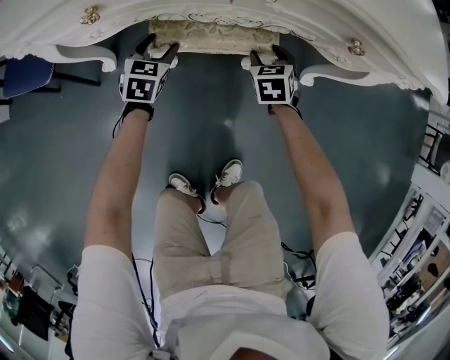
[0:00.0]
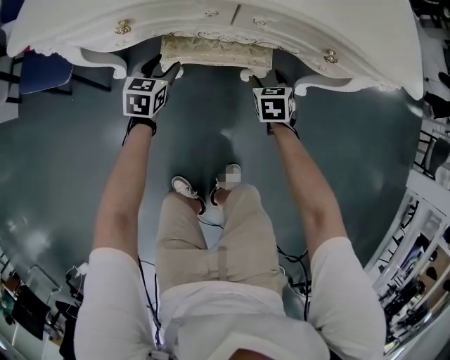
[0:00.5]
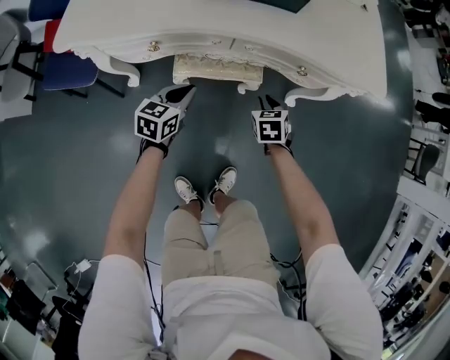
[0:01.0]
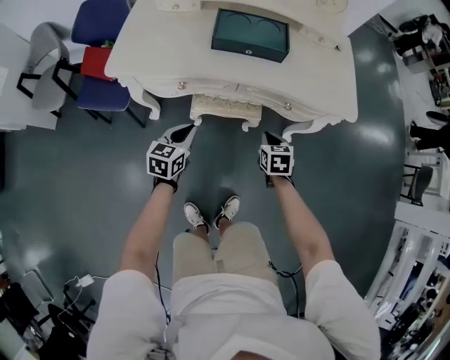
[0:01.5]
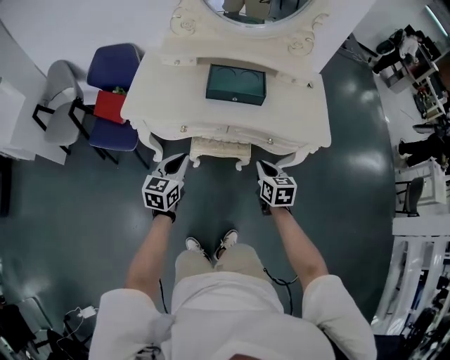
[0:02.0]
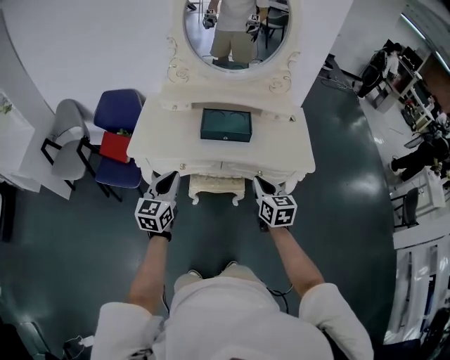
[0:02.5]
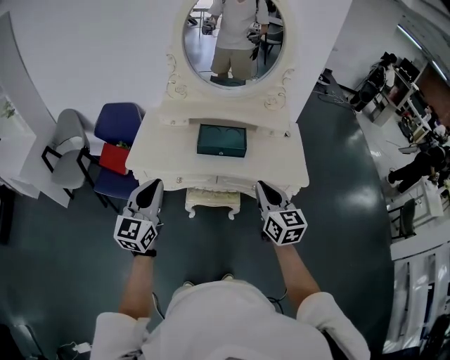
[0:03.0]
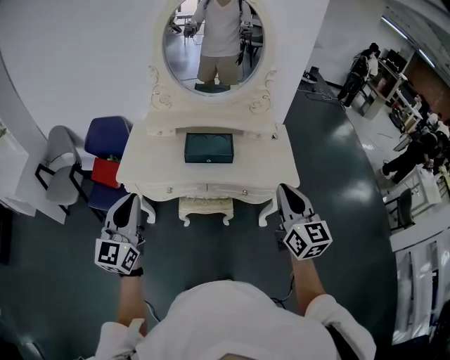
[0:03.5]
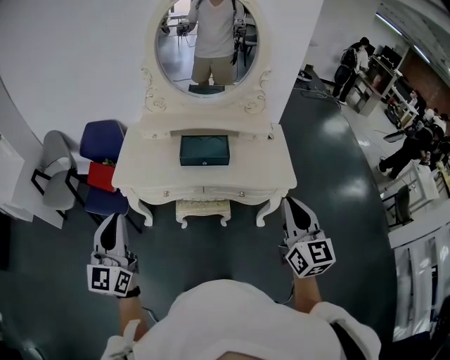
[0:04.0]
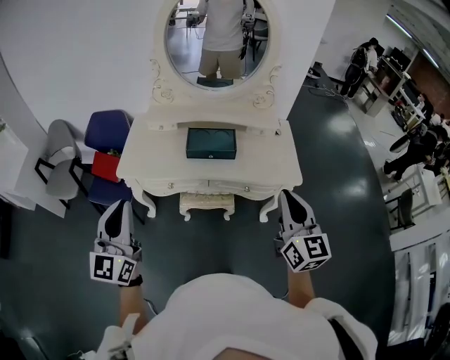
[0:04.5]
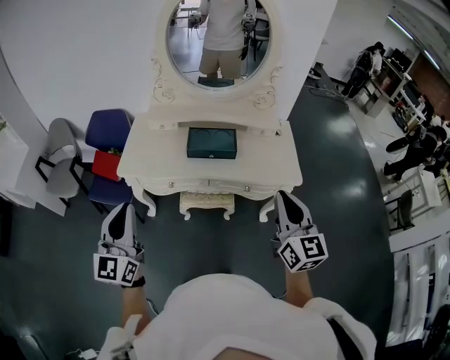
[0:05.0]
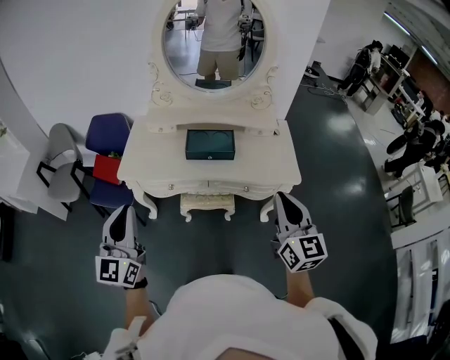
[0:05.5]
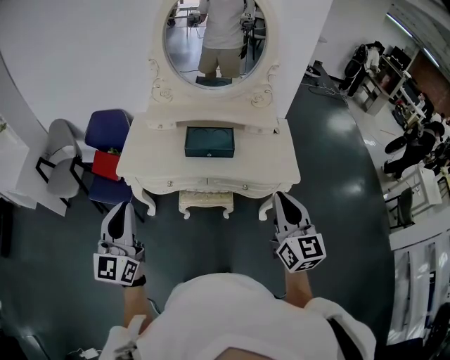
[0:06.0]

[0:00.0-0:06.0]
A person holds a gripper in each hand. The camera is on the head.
0:00.0 to 0:02.0: The left gripper heads upward and backward, covering approximately 50 cm, swivels some 30 degrees, and closes its fingers. The right gripper heads upward, covering approximately 40 cm, swivels some 30 degrees, and closes.
0:02.0 to 0:04.0: The right gripper shifts some 35 cm upward, and tips its fingers upward by roughly 30 degrees; the left gripper travels upward and backward by about 30 cm, and turns by roughly 30 degrees.
0:04.0 to 0:06.0: The grippers move only a little.

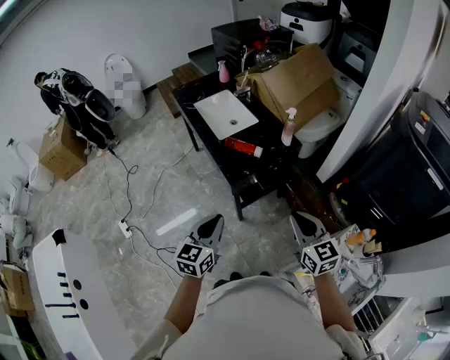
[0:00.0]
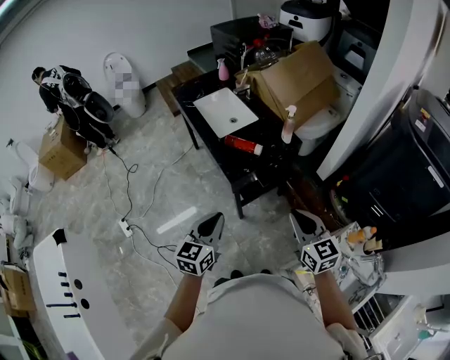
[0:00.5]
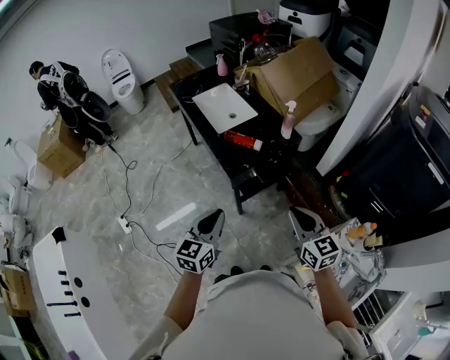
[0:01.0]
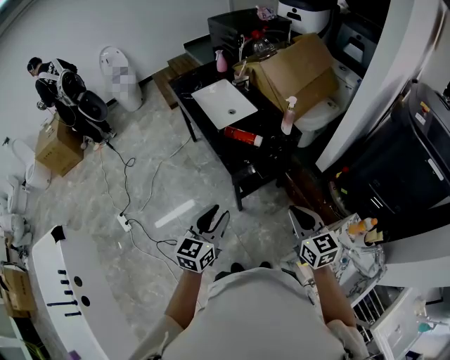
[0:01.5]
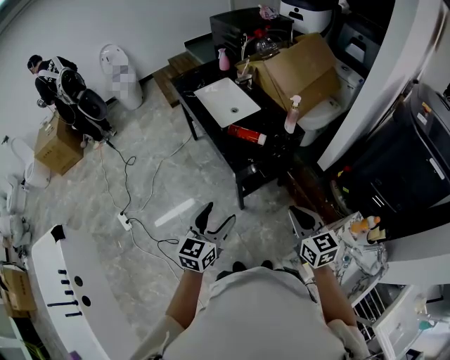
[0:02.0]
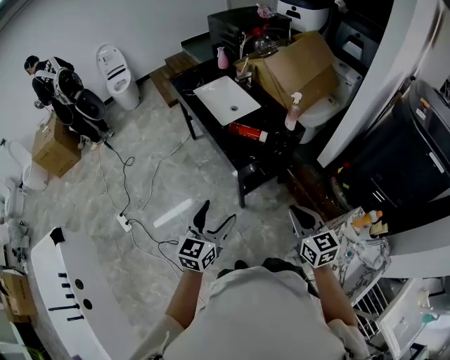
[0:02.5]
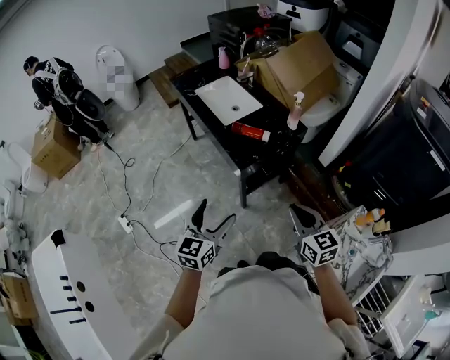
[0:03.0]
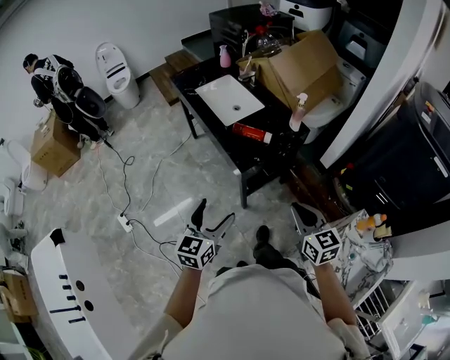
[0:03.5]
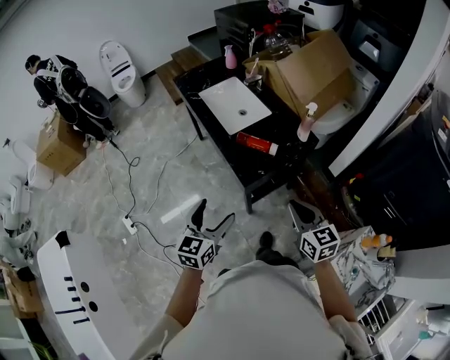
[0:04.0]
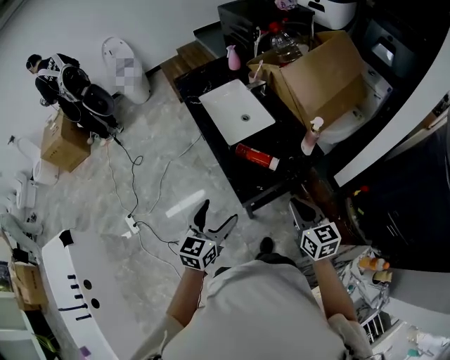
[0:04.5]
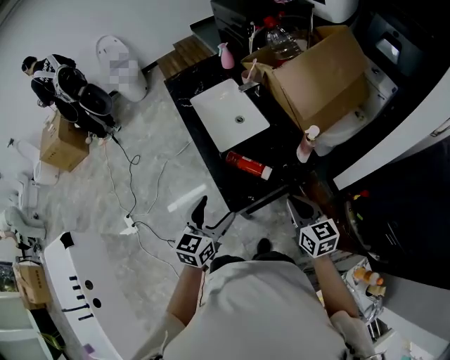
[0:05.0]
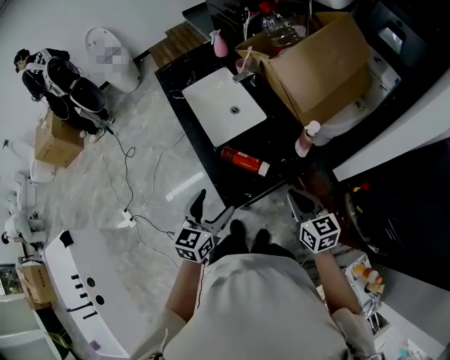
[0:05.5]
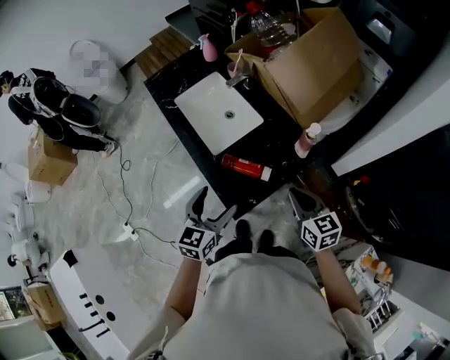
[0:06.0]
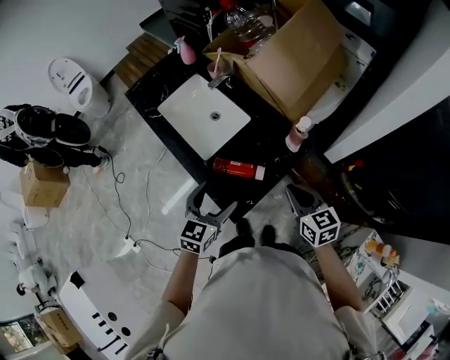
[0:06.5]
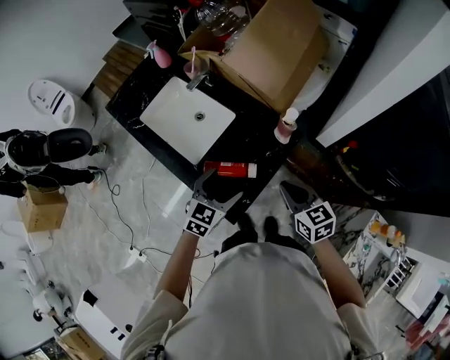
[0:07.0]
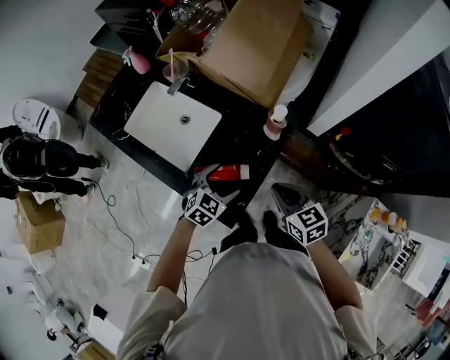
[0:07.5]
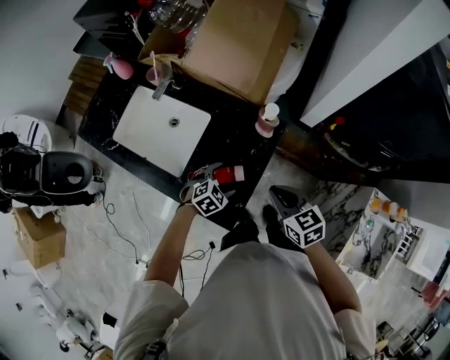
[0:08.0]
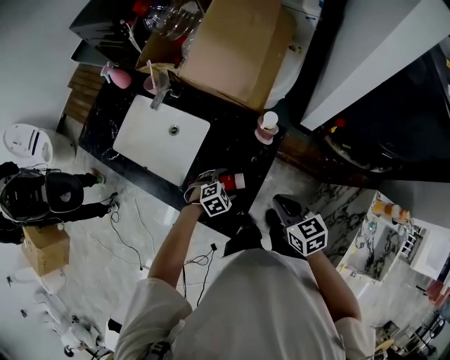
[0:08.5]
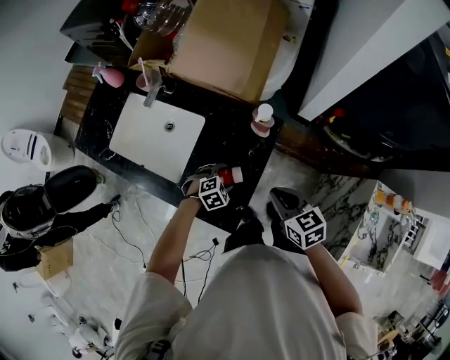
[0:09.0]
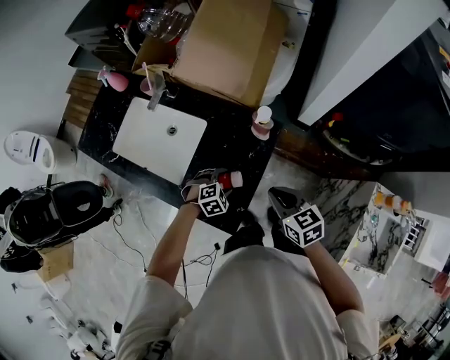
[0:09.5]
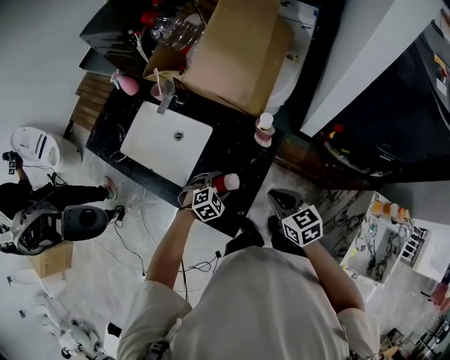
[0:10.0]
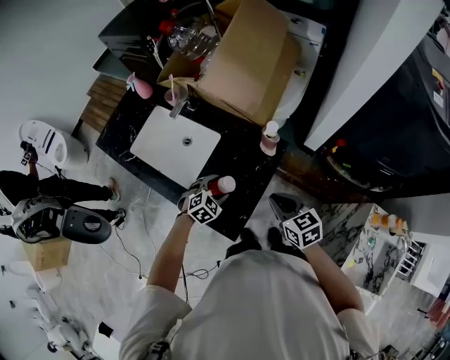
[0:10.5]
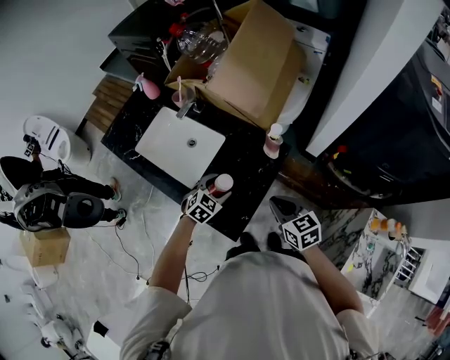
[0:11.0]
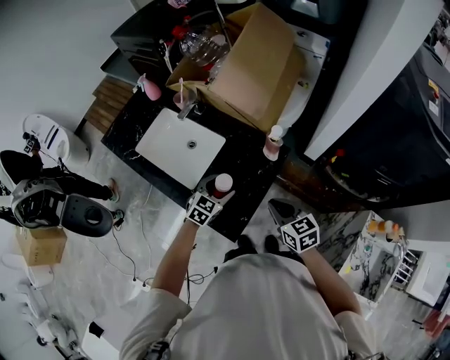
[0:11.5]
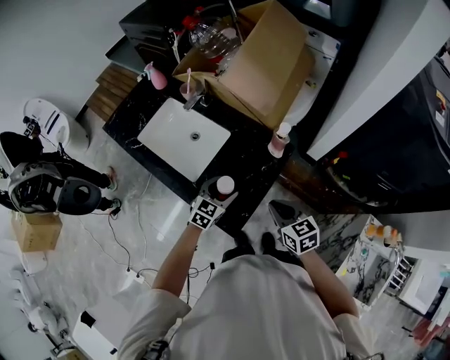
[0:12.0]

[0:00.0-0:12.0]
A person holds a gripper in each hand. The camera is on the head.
0:00.0 to 0:02.0: The left gripper opens its fingers.
0:02.0 to 0:04.0: The two grippers go approximately 10 cm forward.
0:04.0 to 0:06.0: The grippers both shift forward by about 25 cm.
0:06.0 to 0:08.0: The right gripper moves downward, roughly 10 cm, and swivels approximately 20 degrees, while the left gripper goes some 25 cm downward, and tilts its fingers approximately 40 degrees downward.
0:08.0 to 0:10.0: The grippers make only small movements.
0:10.0 to 0:12.0: The right gripper shifts by roughly 5 cm; the left gripper heads upward, covering roughly 10 cm, and angles its fingers upward, by approximately 30 degrees.

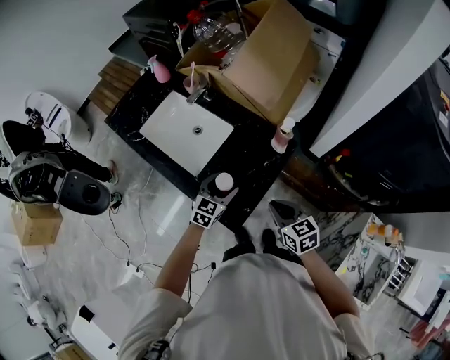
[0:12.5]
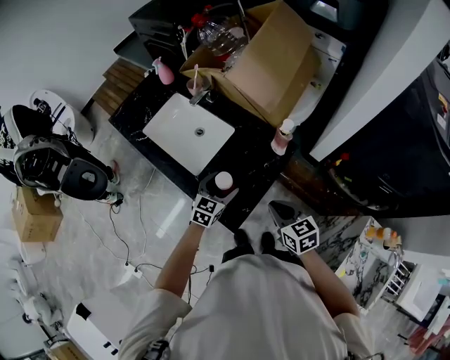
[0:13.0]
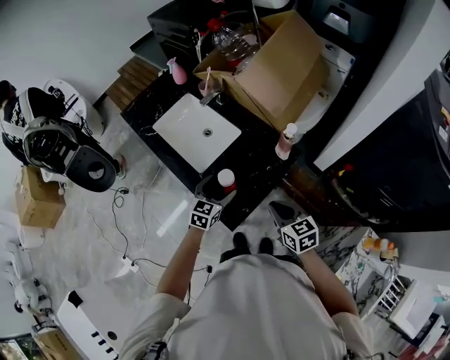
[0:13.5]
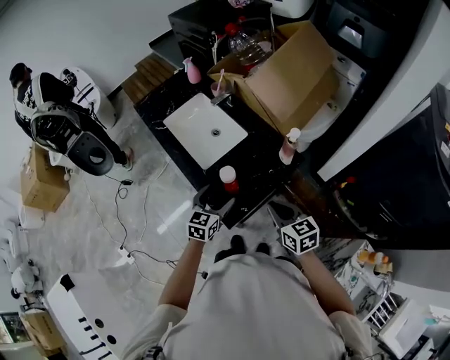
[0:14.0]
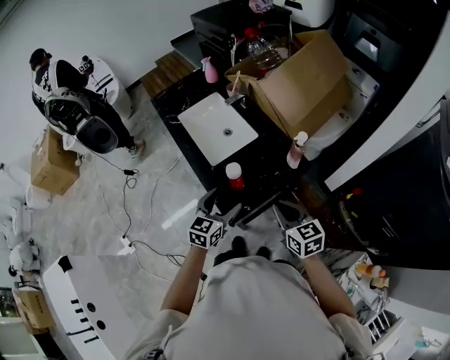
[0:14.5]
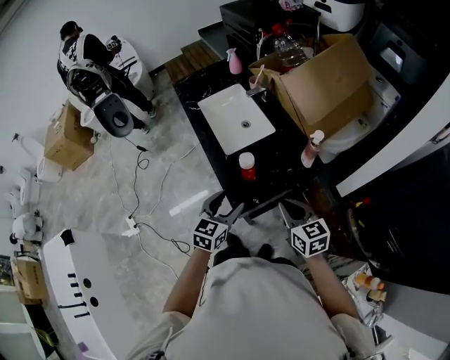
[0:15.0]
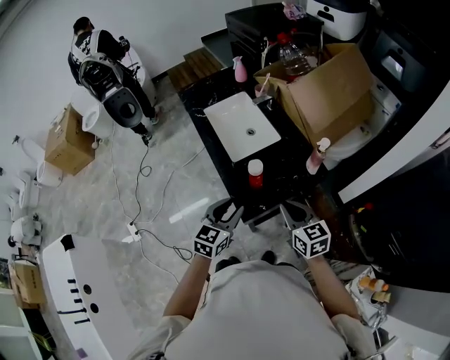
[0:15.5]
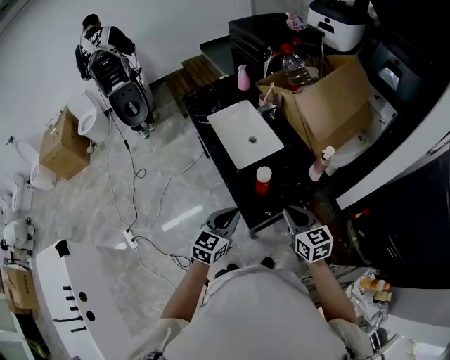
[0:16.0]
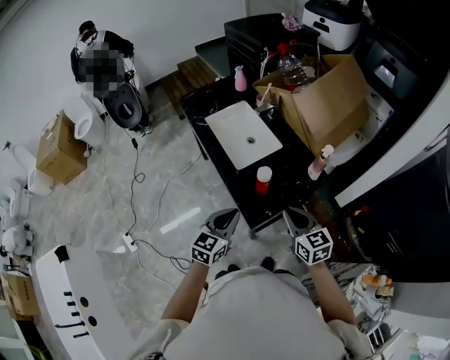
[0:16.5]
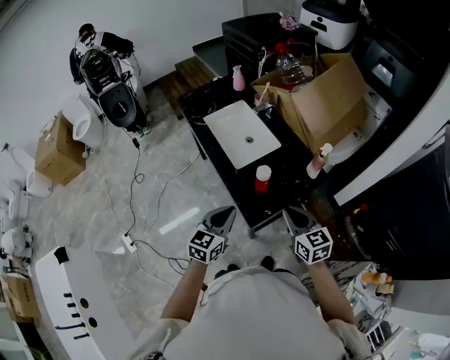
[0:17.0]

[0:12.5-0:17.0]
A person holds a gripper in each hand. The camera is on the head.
0:12.5 to 0:14.5: The left gripper shifts roughly 15 cm backward and upward, and rotates about 30 degrees, while the right gripper heads upward, covering about 5 cm.
0:14.5 to 0:17.0: The left gripper is displaced to the left and backward by some 10 cm, and closes; the right gripper is displaced to the left by about 10 cm.

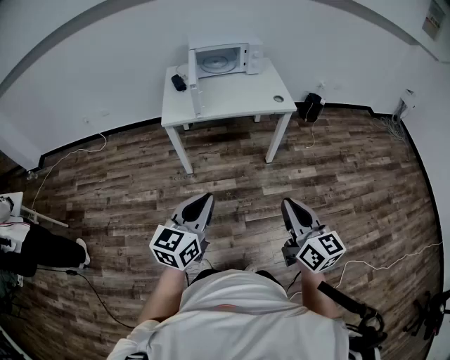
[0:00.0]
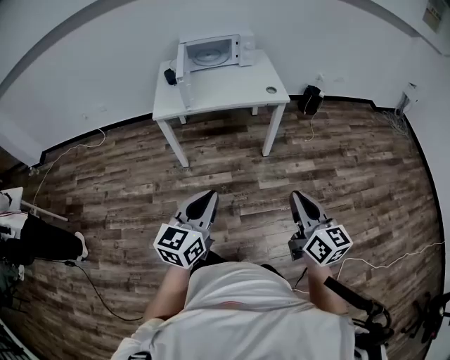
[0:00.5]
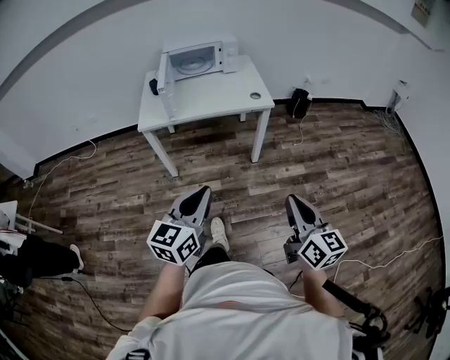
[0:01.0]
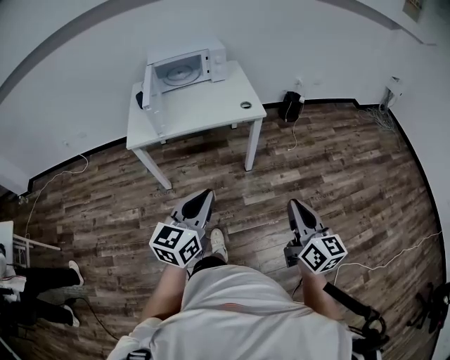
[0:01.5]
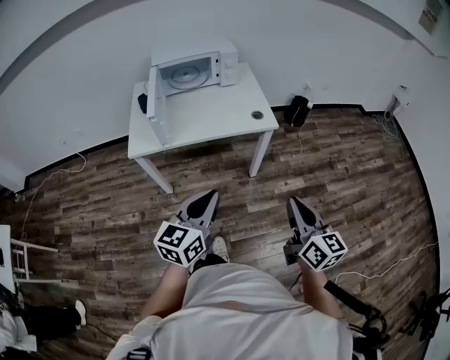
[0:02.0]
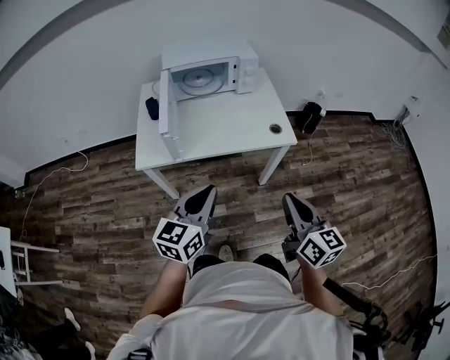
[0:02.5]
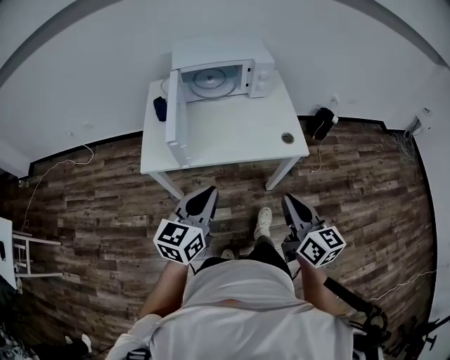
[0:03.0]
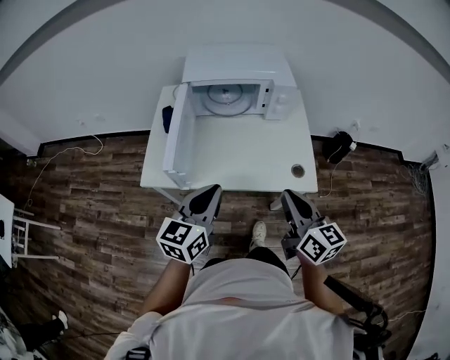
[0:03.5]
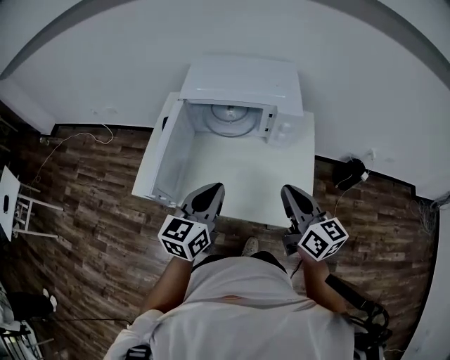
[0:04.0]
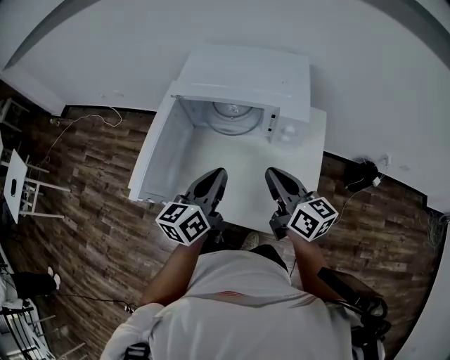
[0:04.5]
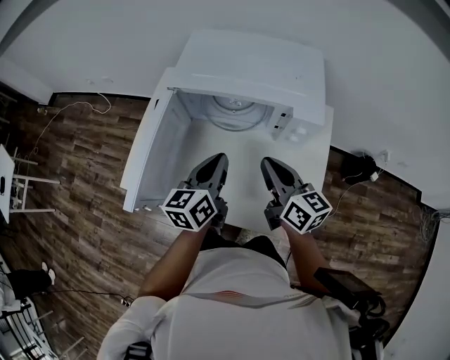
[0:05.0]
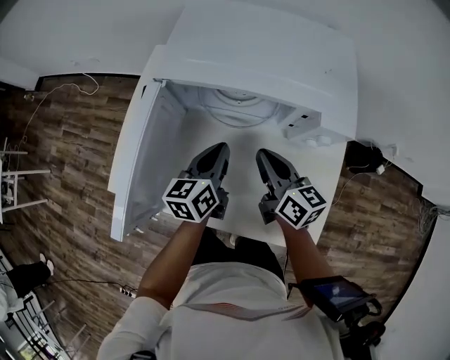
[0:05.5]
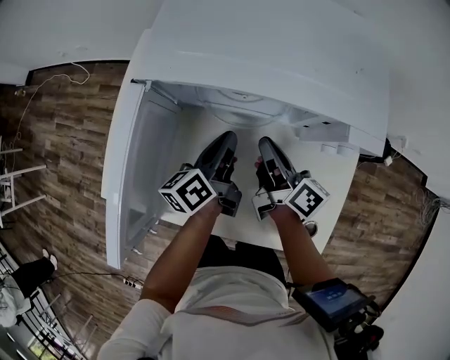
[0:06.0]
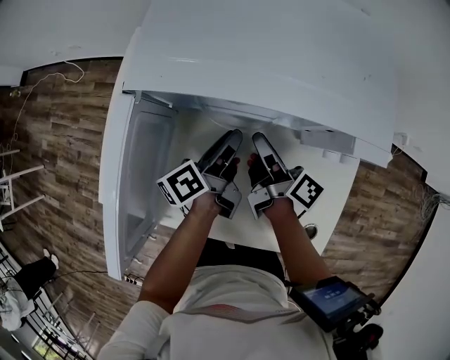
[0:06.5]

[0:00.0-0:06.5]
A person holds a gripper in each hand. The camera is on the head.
0:00.0 to 0:02.0: Both grippers move forward and to the right, about 25 cm.
0:02.0 to 0:04.5: The pair of grippers is taken about 60 cm. The left gripper rotates approximately 40 degrees; the right gripper turns by some 40 degrees.
0:04.5 to 0:06.5: Both grippers move downward and forward, approximately 30 cm. The right gripper rolls clockwise, seen from behind, by about 40 degrees, and opens up. Meanwhile the left gripper rolls counterclockwise, seen from behind, by about 40 degrees, and opens its fingers.
